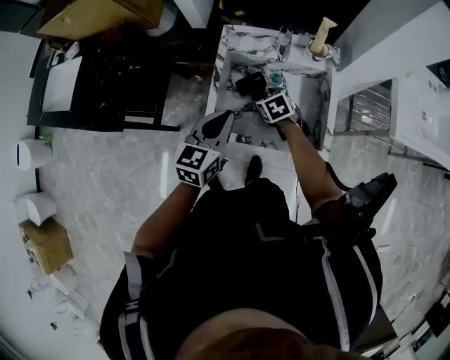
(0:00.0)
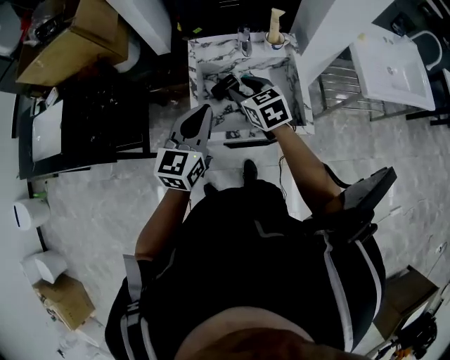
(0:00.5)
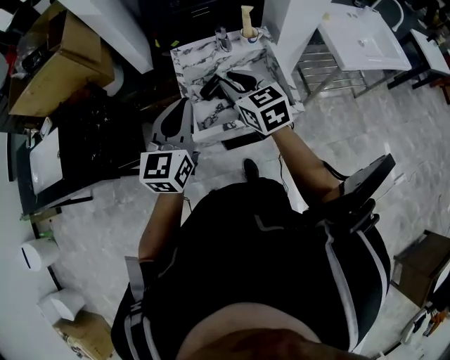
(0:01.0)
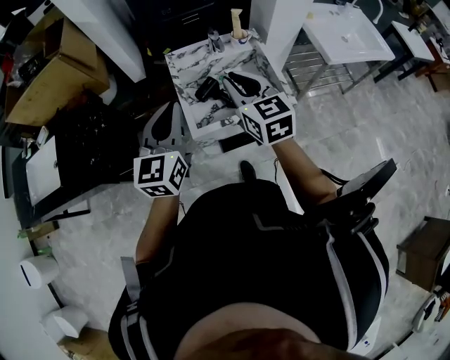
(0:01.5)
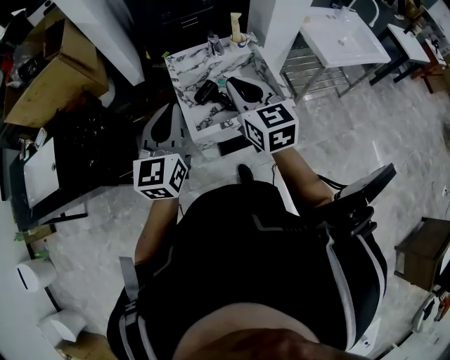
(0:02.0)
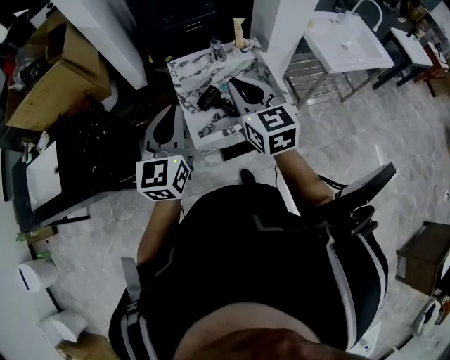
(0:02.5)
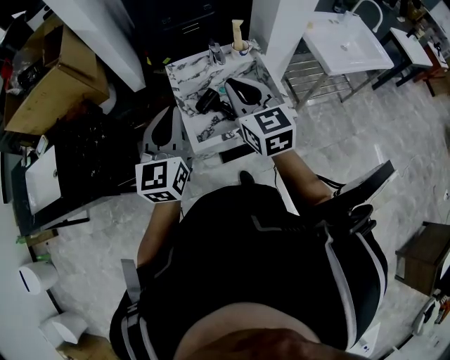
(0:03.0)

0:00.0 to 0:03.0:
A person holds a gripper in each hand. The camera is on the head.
0:00.0 to 0:01.5: The left gripper heads upward and to the left, covering roughly 20 cm, and changes its angle by roughly 20 degrees. The right gripper shifts about 35 cm upward and backward, points its fingers approximately 40 degrees further upward, and closes up.
0:01.5 to 0:03.0: There are only small adjustments of the grippers.

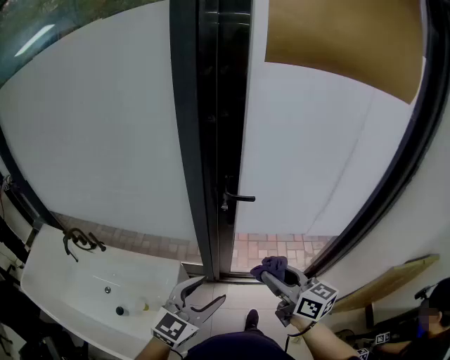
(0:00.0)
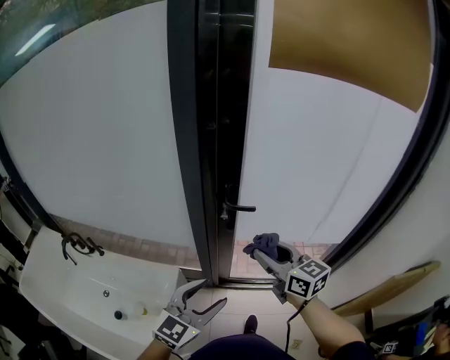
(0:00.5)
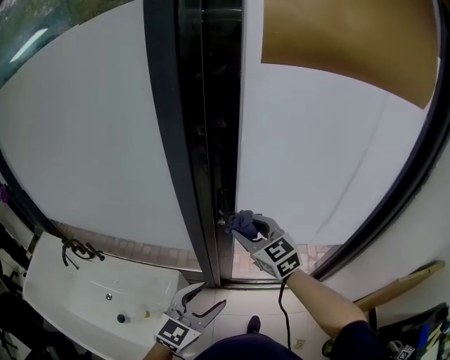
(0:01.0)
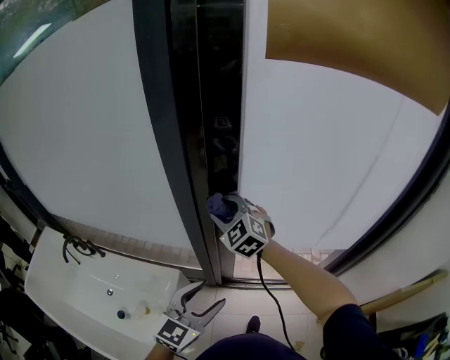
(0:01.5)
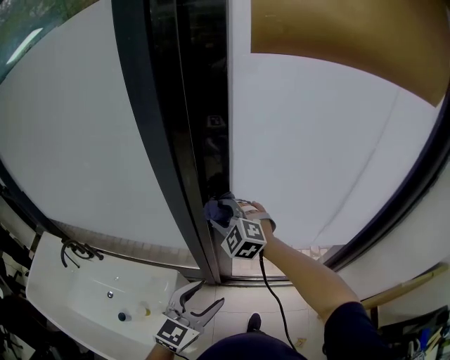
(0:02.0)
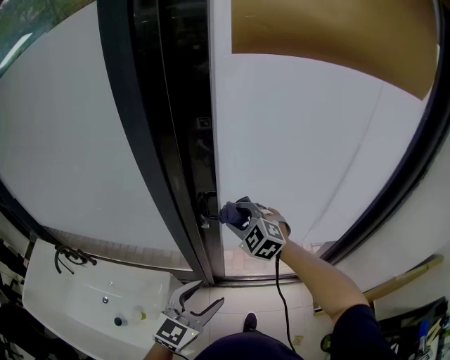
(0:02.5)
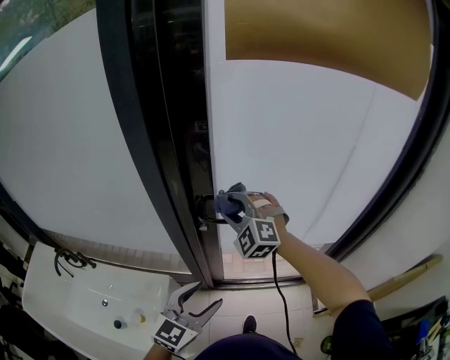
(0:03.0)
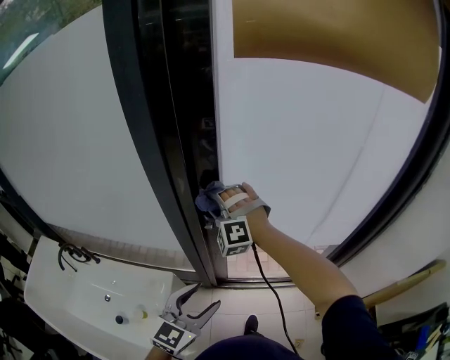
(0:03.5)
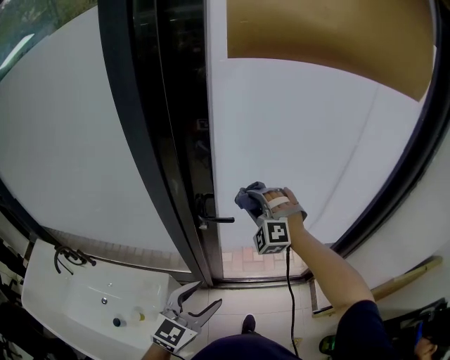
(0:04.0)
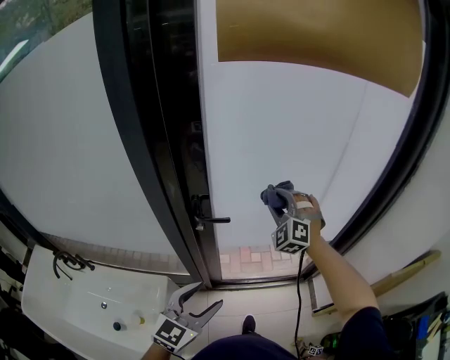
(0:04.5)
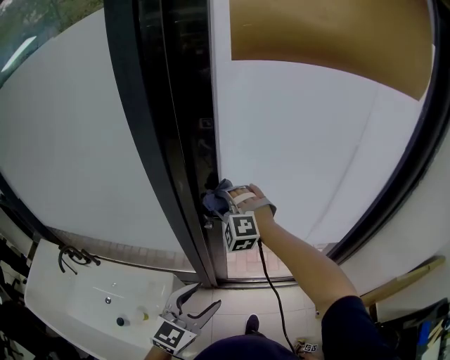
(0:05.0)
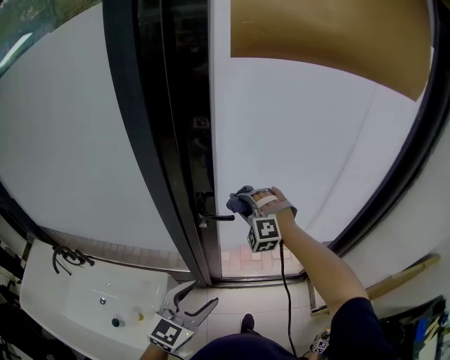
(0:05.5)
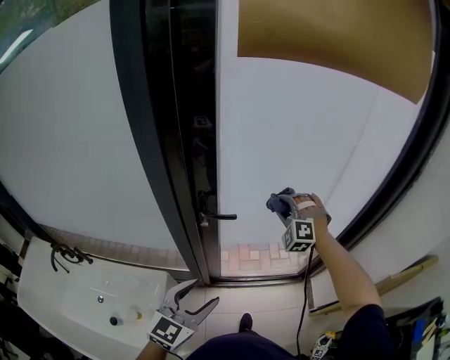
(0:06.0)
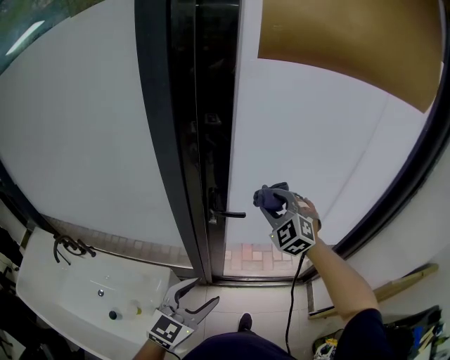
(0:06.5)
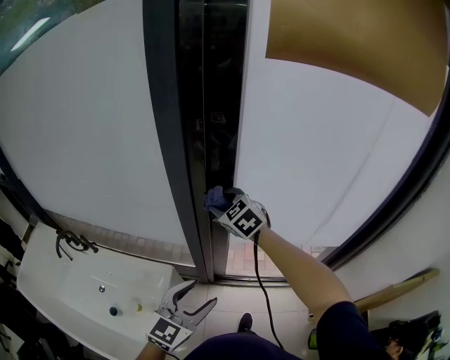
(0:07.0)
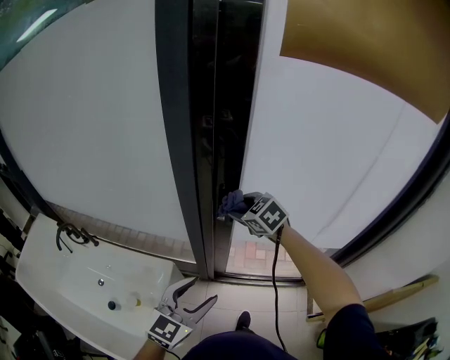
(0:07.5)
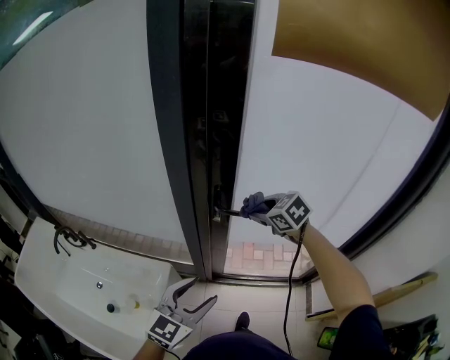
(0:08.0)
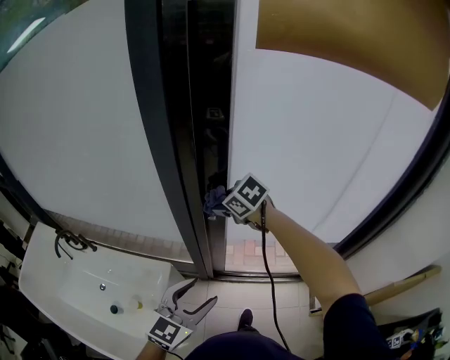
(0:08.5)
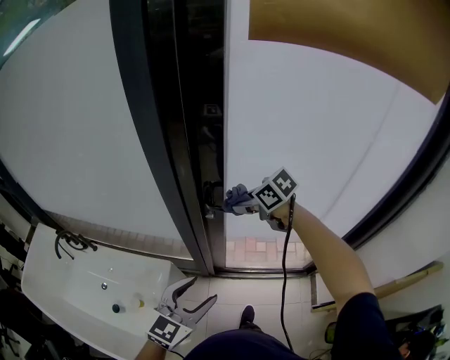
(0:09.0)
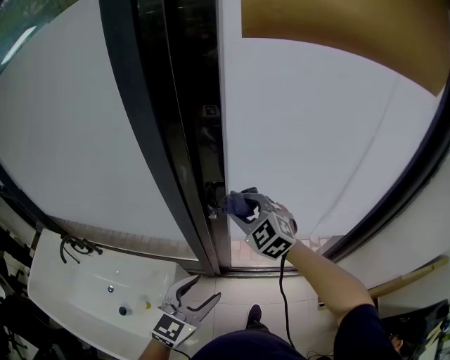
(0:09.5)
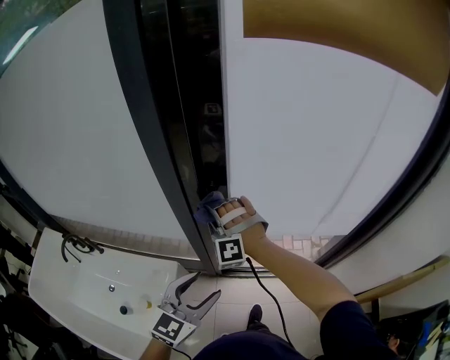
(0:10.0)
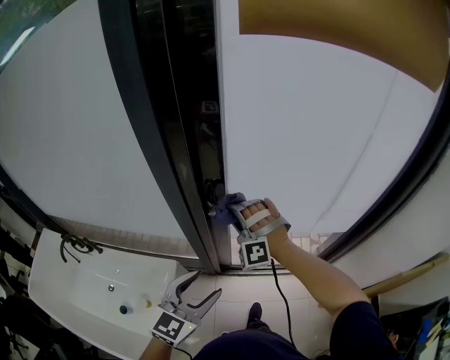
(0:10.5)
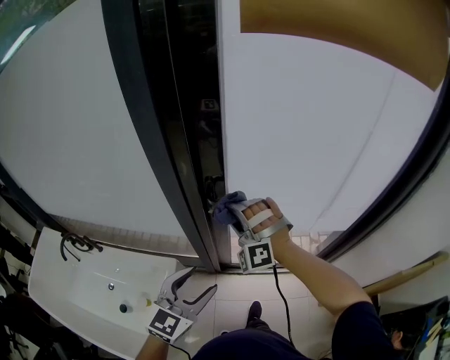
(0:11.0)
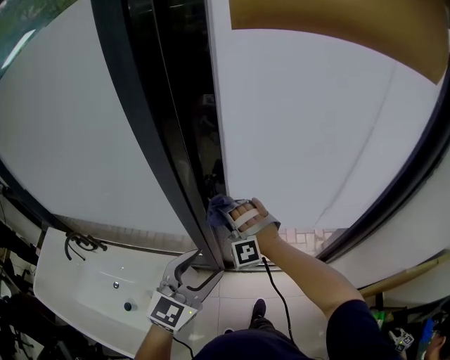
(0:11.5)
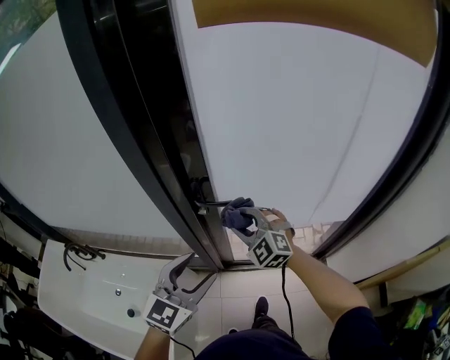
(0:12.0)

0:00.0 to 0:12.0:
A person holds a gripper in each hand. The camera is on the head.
0:00.0 to 0:02.0: The left gripper travels forward by about 10 cm; the right gripper moves forward and to the left, about 30 cm, and rotates around the line of its fingers by approximately 70 degrees, counterclockwise from behind.
0:02.0 to 0:04.0: The right gripper swings left and right, approximately 15 cm each way, with 2 reversals, and rotates some 30 degrees.
0:04.0 to 0:06.0: The right gripper swings left and right, roughly 20 cm each way, with 2 reversals.
0:06.0 to 0:08.0: The right gripper moves to the left, roughly 15 cm, and rotates approximately 70 degrees.
0:08.0 to 0:10.0: The right gripper swings left and right, approximately 15 cm each way, with 2 reversals, and rotates around the line of its fingers by approximately 70 degrees, counterclockwise from behind.
0:10.0 to 0:12.0: The left gripper moves roughly 5 cm, while the right gripper heads to the right, covering some 15 cm, and changes its angle by about 40 degrees.

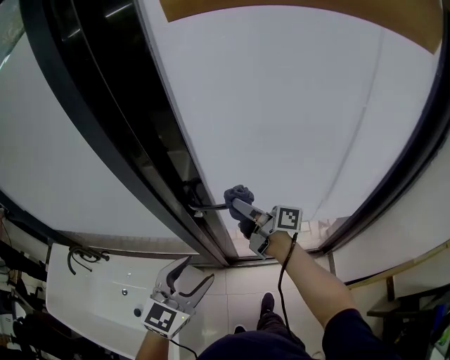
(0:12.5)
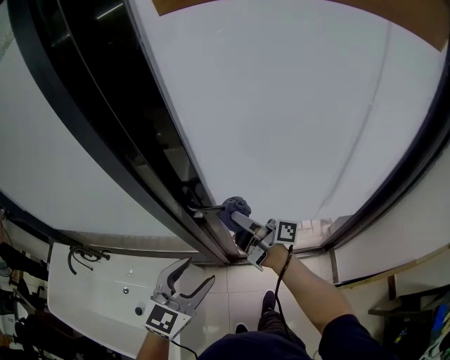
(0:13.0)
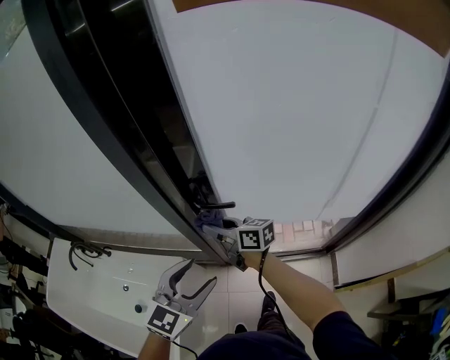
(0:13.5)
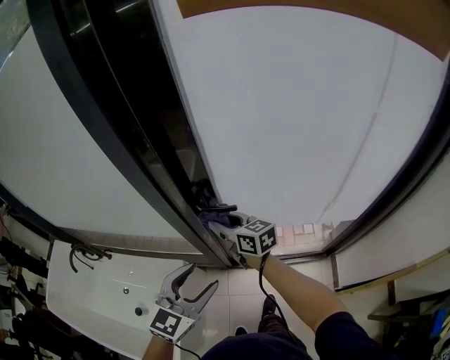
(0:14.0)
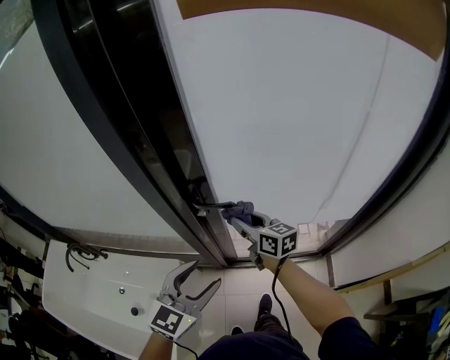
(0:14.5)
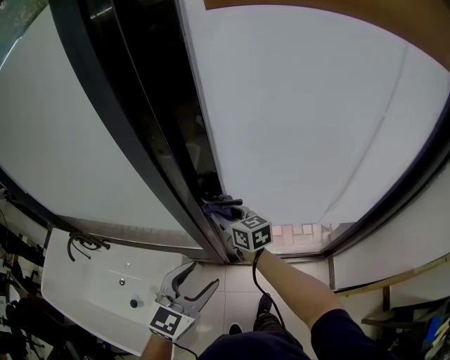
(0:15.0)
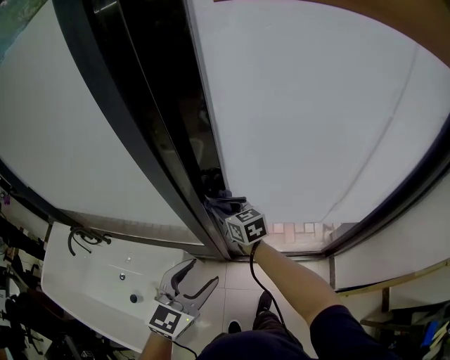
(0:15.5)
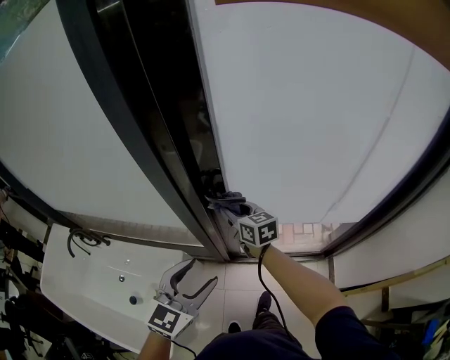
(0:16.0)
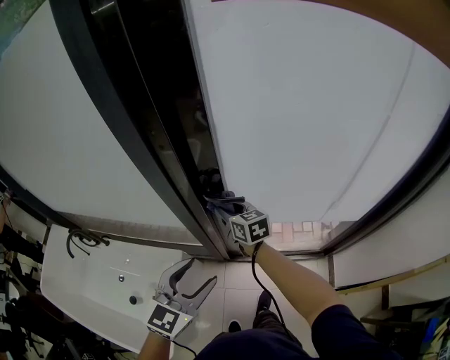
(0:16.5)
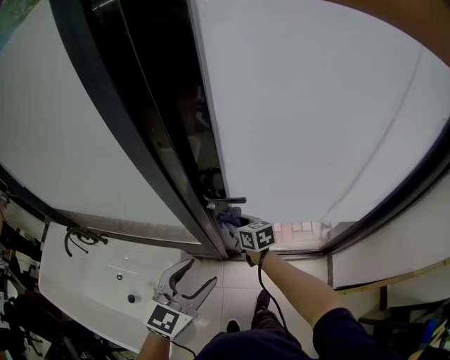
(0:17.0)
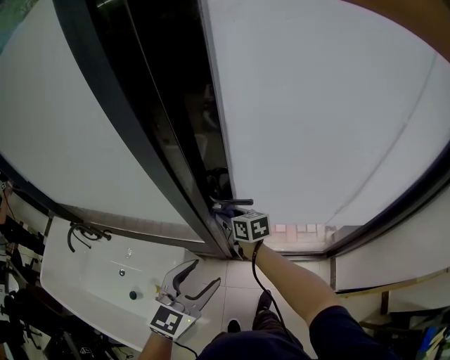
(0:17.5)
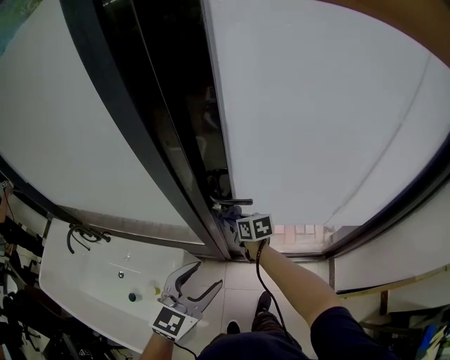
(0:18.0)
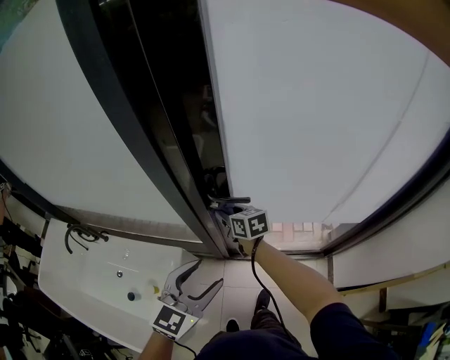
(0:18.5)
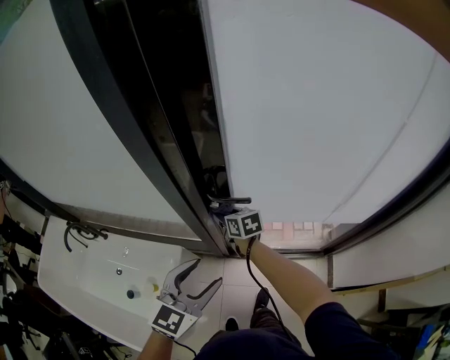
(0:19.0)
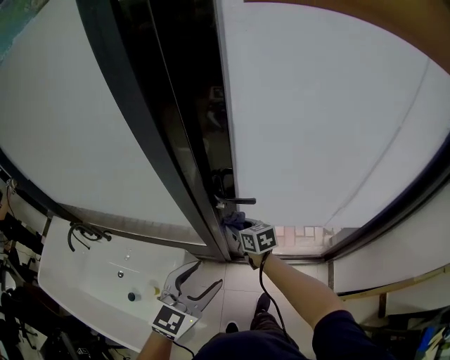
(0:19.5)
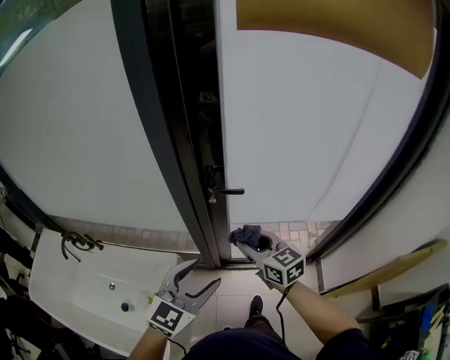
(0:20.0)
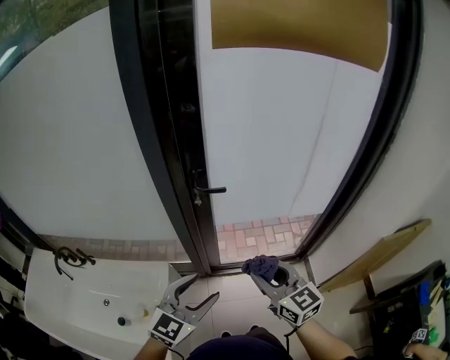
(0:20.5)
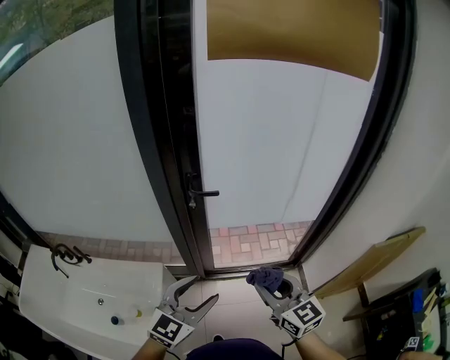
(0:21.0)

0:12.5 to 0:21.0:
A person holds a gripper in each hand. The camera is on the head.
0:12.5 to 0:14.5: The right gripper travels downward by roughly 5 cm, goes to the left and returns, approximately 10 cm each way, and changes its angle by approximately 40 degrees.
0:14.5 to 0:16.5: The right gripper heads to the left, covering approximately 10 cm.
0:16.5 to 0:19.0: The right gripper swings up and down, about 10 cm each way, with 2 reversals.
0:19.0 to 0:21.0: The left gripper moves backward, approximately 15 cm. The right gripper travels backward, upward and to the right by about 50 cm, and rotates approximately 40 degrees.

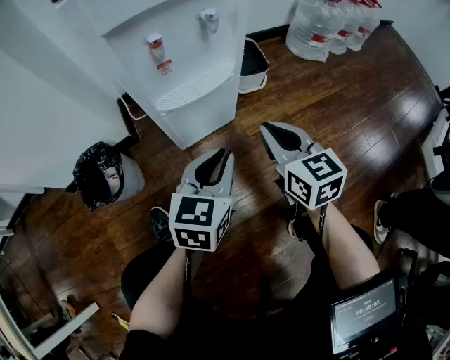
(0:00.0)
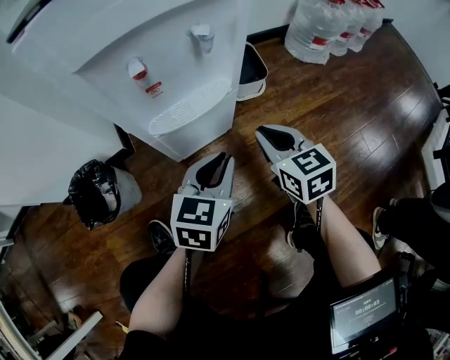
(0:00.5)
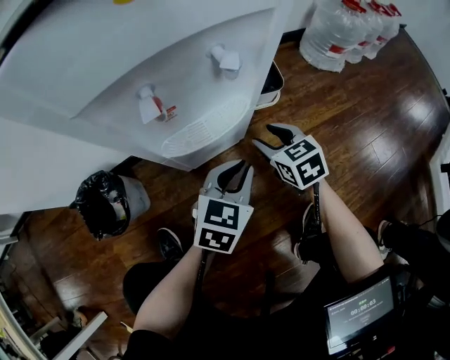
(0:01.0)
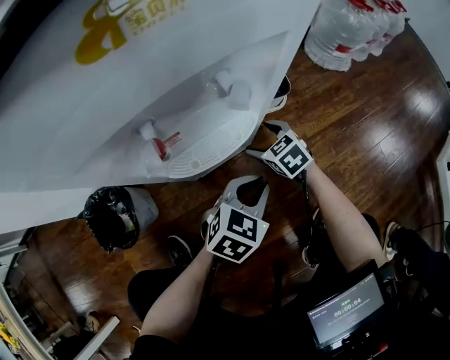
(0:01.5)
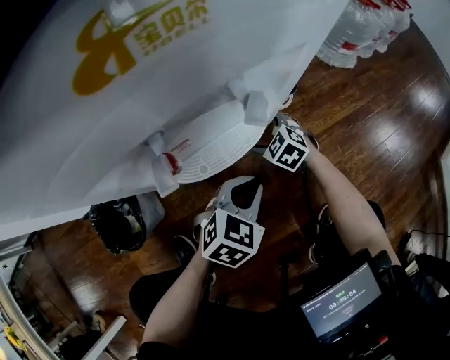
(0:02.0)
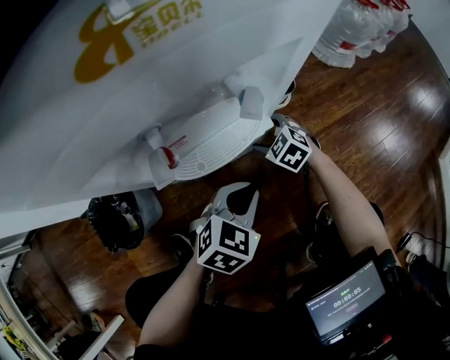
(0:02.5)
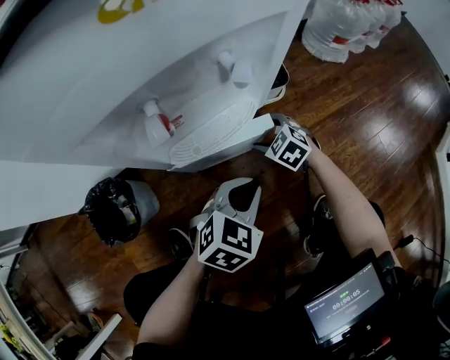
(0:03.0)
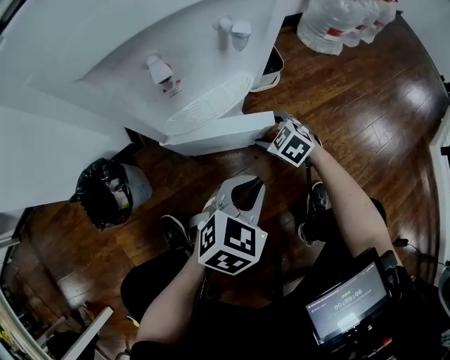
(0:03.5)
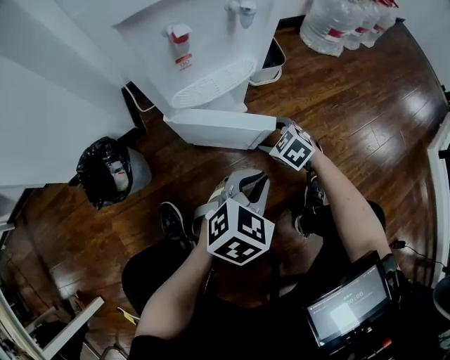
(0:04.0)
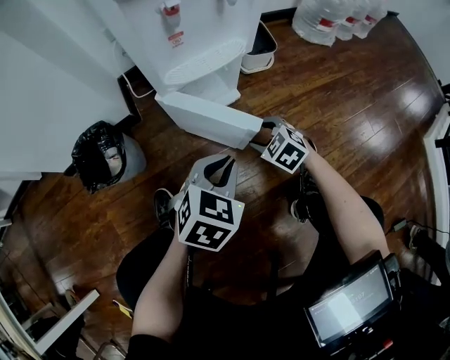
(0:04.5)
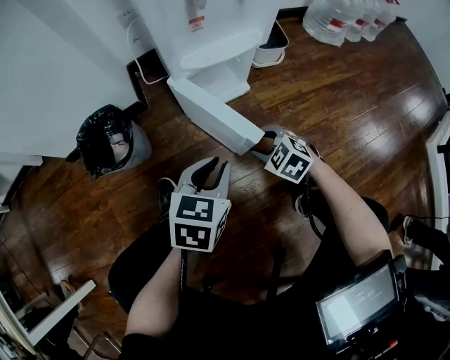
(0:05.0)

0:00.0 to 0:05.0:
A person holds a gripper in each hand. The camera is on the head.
0:00.0 to 0:02.5: The right gripper goes some 30 cm downward and forward, points its fingers about 30 degrees further downward, and opens. Meanwhile the left gripper goes some 15 cm forward and downward, and rotates approximately 30 degrees.
0:02.5 to 0:05.0: The right gripper shifts some 25 cm backward. Meanwhile the left gripper heads backward and to the left, covering about 20 cm, and changes its angle by approximately 30 degrees.
